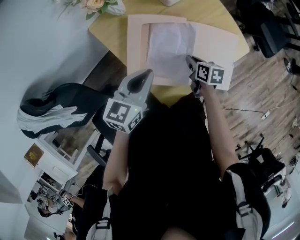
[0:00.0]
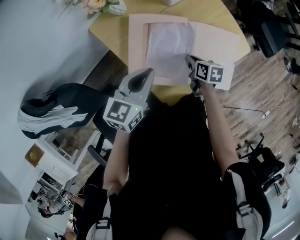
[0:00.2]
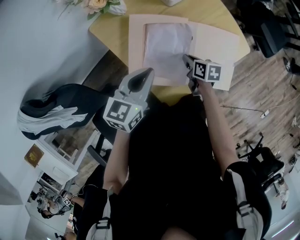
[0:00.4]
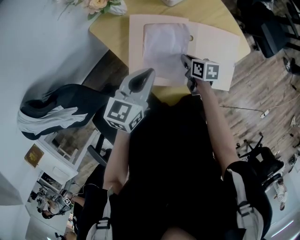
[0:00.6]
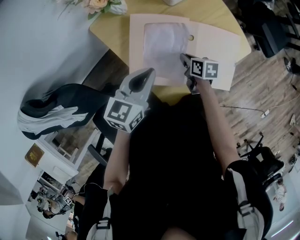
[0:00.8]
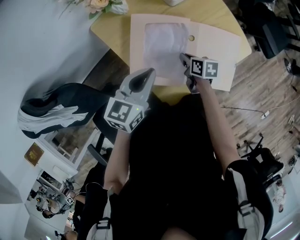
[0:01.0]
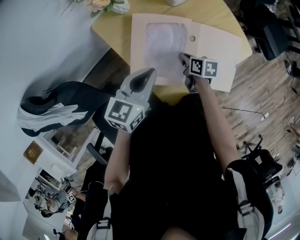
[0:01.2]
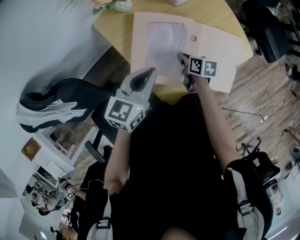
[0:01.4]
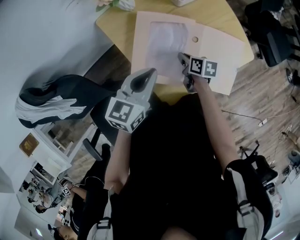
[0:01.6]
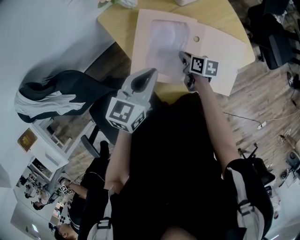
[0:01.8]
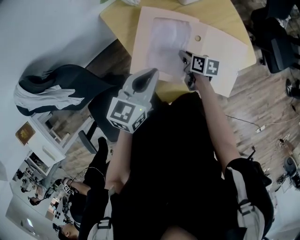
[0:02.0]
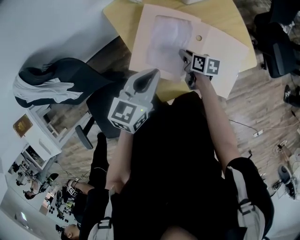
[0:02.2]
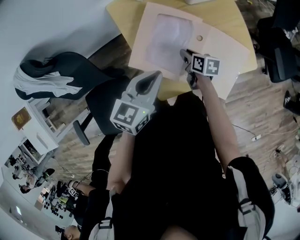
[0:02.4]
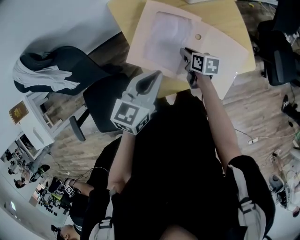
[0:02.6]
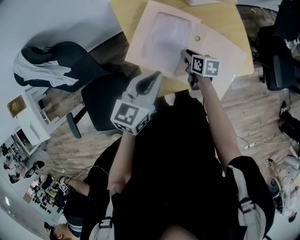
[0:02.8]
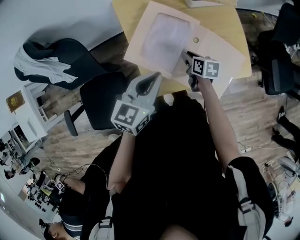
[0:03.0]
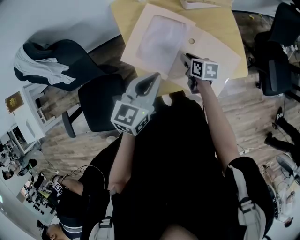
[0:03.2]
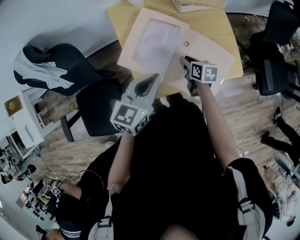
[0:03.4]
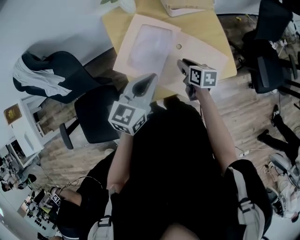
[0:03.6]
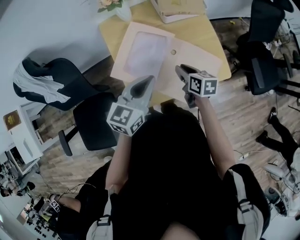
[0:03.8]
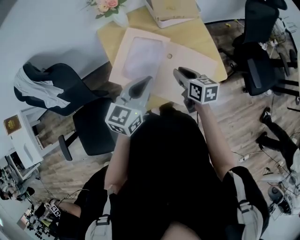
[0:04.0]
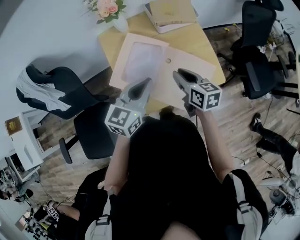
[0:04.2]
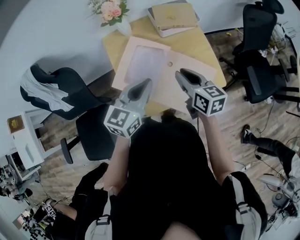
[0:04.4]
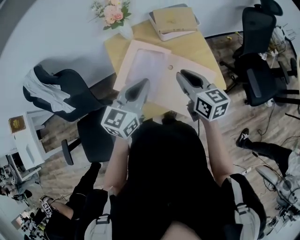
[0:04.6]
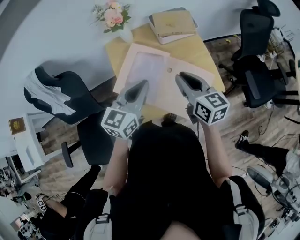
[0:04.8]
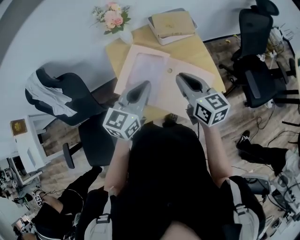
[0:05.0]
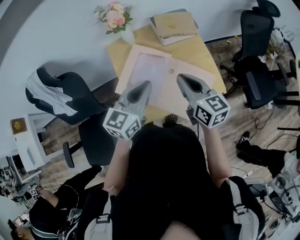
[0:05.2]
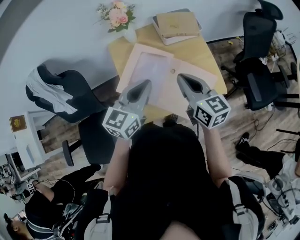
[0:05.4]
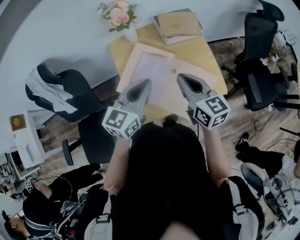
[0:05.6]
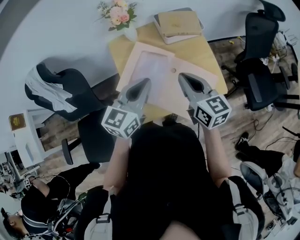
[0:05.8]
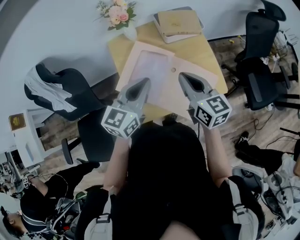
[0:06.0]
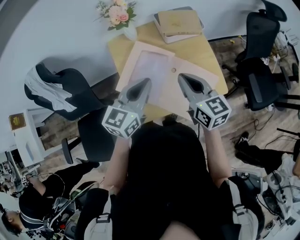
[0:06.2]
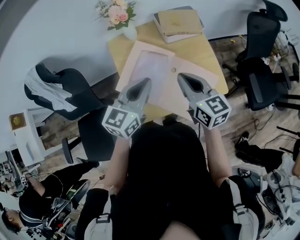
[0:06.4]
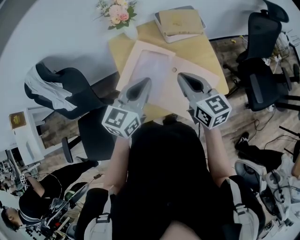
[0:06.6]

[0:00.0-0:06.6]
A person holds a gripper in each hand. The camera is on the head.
0:00.0 to 0:01.6: The right gripper travels to the left by about 5 cm.
0:01.6 to 0:03.2: The right gripper shifts approximately 5 cm to the right, changes its angle by some 20 degrees, and opens up; the left gripper heads backward and to the right, covering about 10 cm.
0:03.2 to 0:05.0: The right gripper moves upward, about 30 cm, and tips its fingers upward by approximately 30 degrees; the left gripper goes roughly 10 cm upward and to the right.
0:05.0 to 0:06.6: The grippers stay close to where they were, moving slightly.

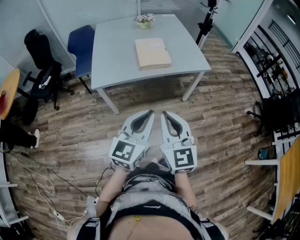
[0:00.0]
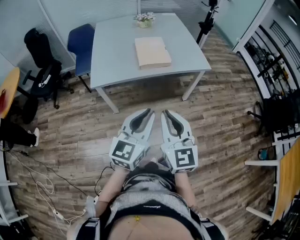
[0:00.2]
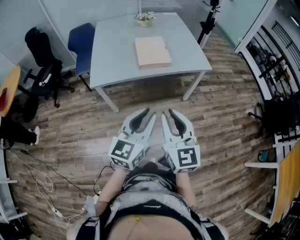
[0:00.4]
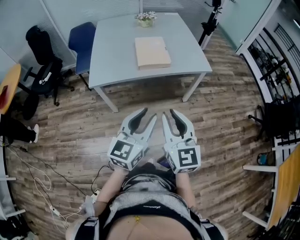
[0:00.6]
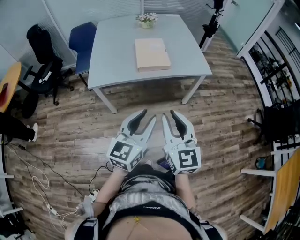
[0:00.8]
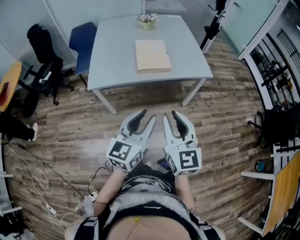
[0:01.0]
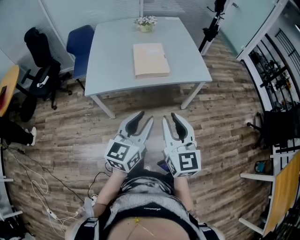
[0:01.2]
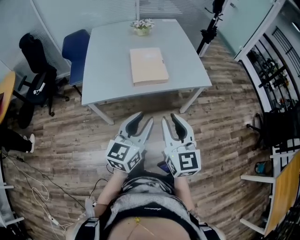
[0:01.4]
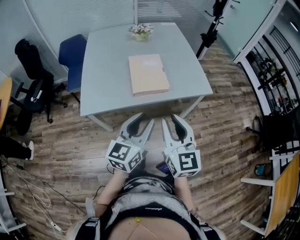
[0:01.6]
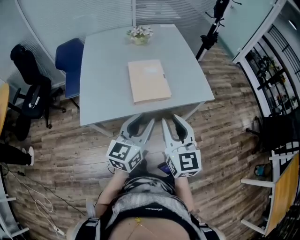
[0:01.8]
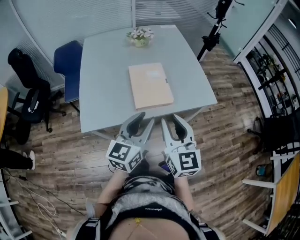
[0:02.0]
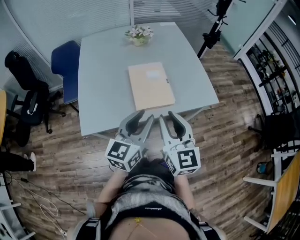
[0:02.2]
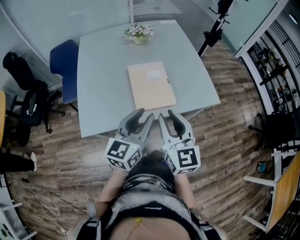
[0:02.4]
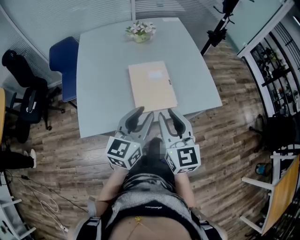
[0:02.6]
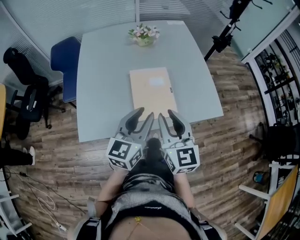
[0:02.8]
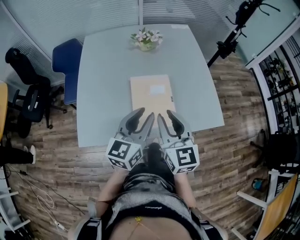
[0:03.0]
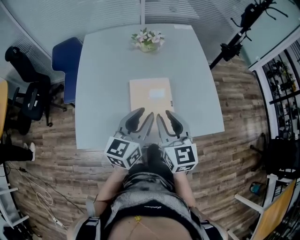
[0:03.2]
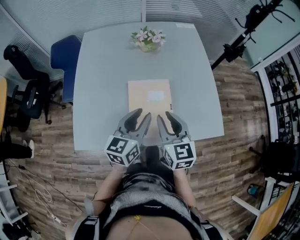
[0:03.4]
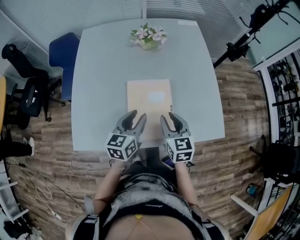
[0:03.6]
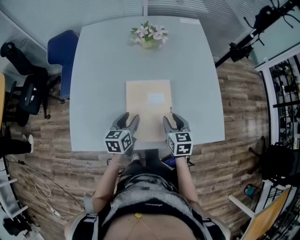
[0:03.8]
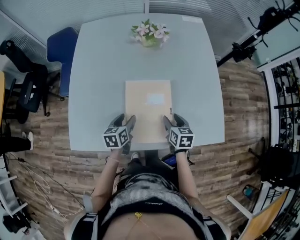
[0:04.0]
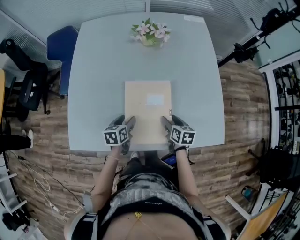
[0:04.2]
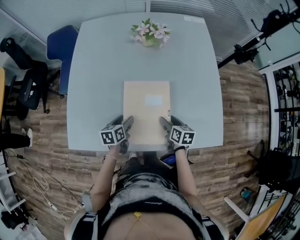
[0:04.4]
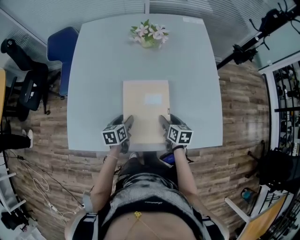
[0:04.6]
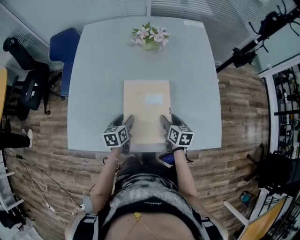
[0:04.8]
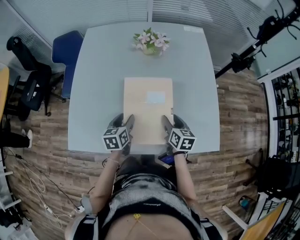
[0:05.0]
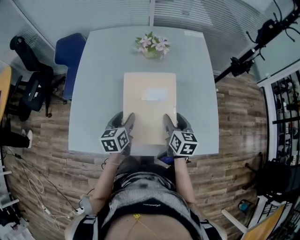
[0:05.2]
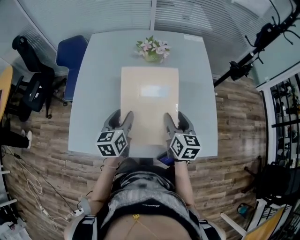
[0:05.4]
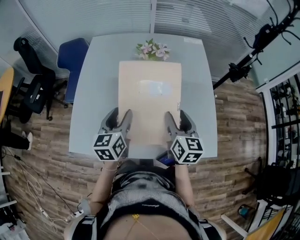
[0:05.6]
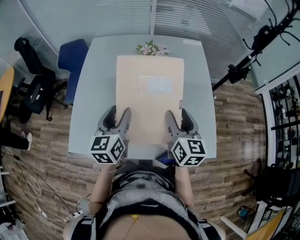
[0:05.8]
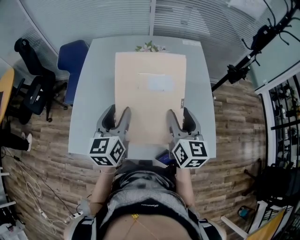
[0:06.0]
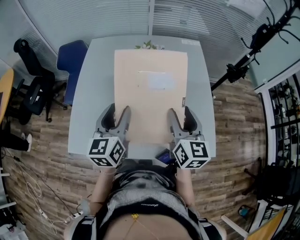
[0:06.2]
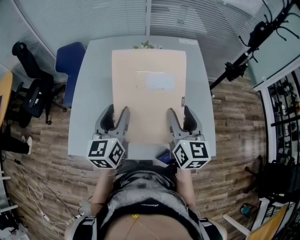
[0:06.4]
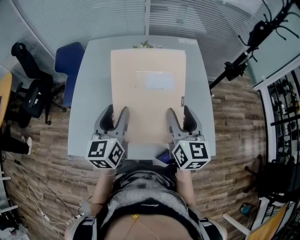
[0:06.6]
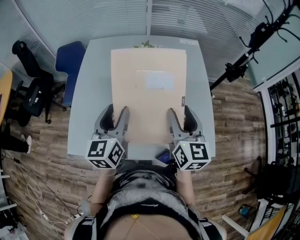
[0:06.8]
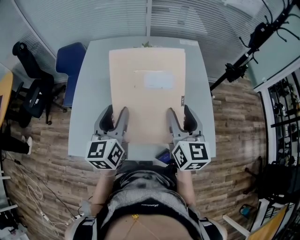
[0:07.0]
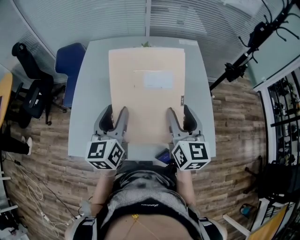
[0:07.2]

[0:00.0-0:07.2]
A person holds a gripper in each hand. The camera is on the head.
0:00.0 to 0:01.4: Both grippers travel together forward, some 15 cm. The right gripper opens. Meanwhile the left gripper opens its fingers.
0:01.4 to 0:02.8: Both grippers move forward, approximately 30 cm.
0:02.8 to 0:04.4: The grippers both shift downward and forward by about 35 cm. The right gripper tips its fingers downward by some 30 degrees, and opens its fingers. The left gripper tips its fingers downward by roughly 40 degrees, and opens.
0:04.4 to 0:05.8: Both grippers move upward, roughly 30 cm. The left gripper swivels roughly 40 degrees. Meanwhile the right gripper turns by roughly 40 degrees.
0:05.8 to 0:07.2: The right gripper goes some 5 cm upward.

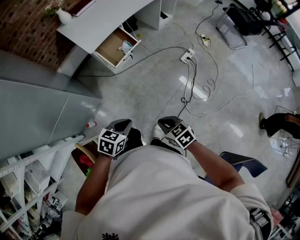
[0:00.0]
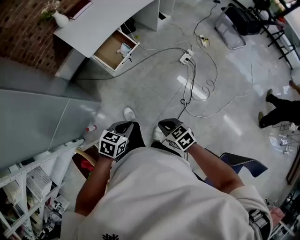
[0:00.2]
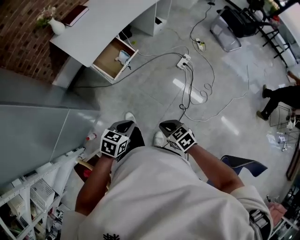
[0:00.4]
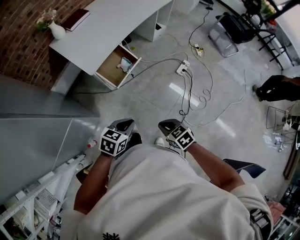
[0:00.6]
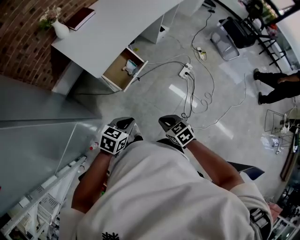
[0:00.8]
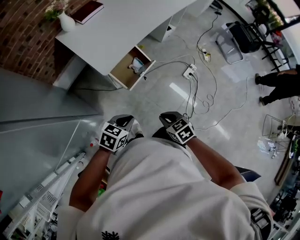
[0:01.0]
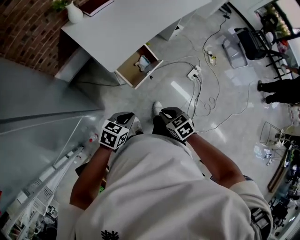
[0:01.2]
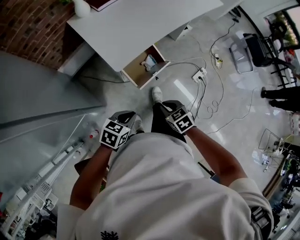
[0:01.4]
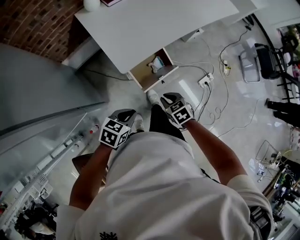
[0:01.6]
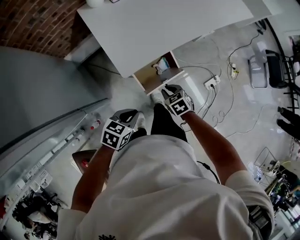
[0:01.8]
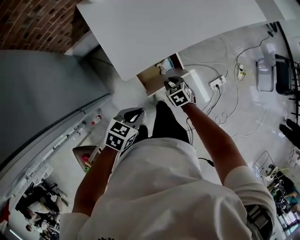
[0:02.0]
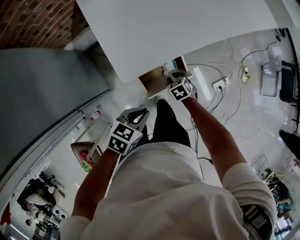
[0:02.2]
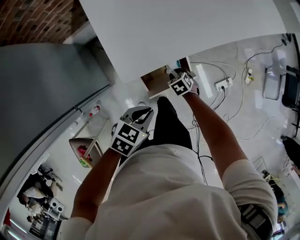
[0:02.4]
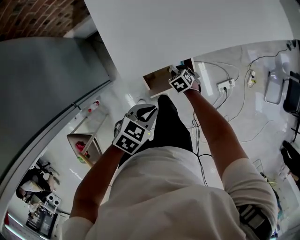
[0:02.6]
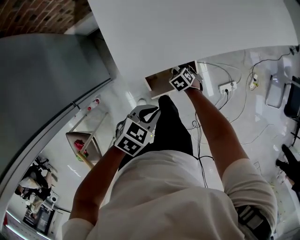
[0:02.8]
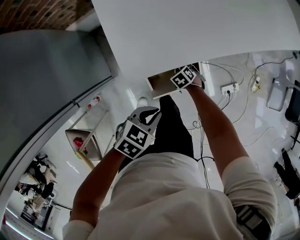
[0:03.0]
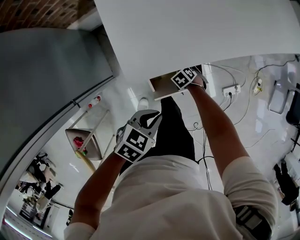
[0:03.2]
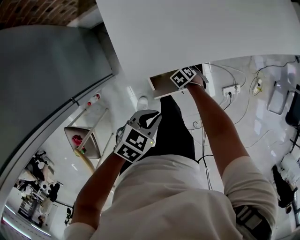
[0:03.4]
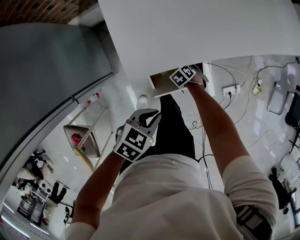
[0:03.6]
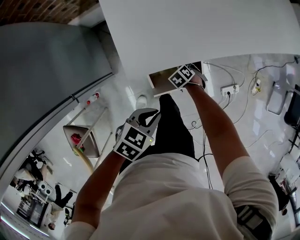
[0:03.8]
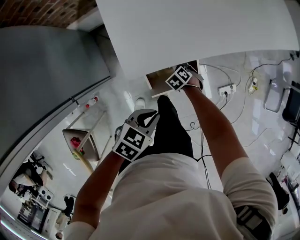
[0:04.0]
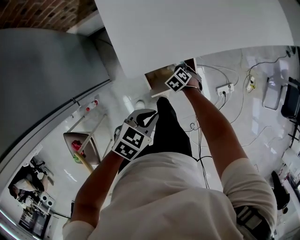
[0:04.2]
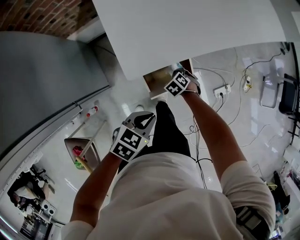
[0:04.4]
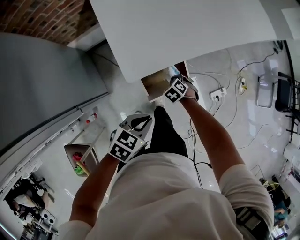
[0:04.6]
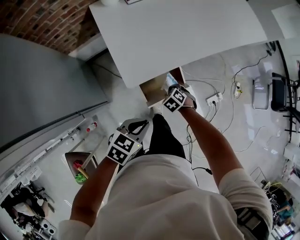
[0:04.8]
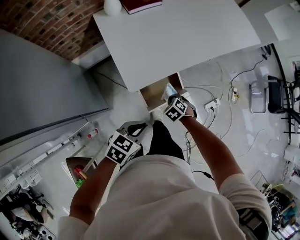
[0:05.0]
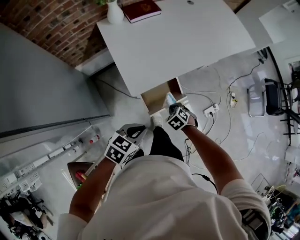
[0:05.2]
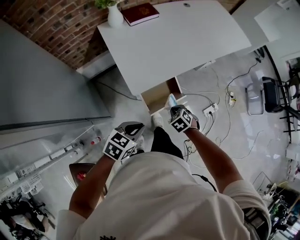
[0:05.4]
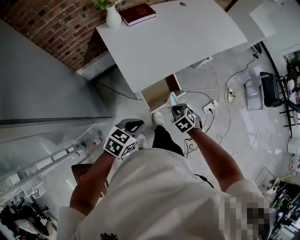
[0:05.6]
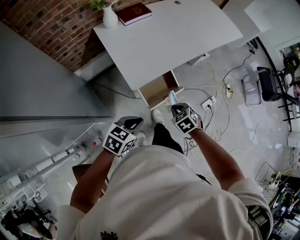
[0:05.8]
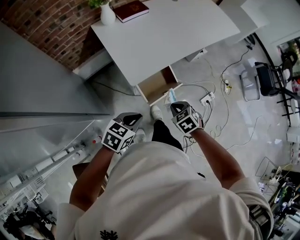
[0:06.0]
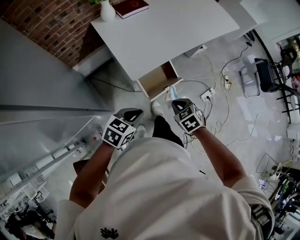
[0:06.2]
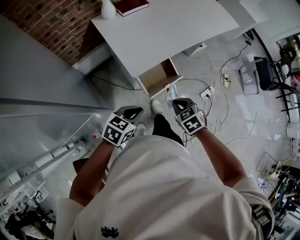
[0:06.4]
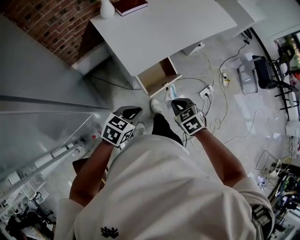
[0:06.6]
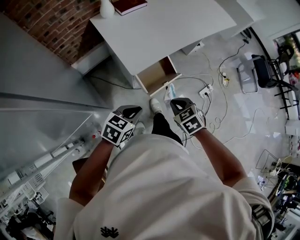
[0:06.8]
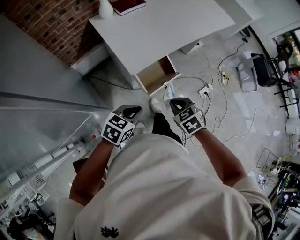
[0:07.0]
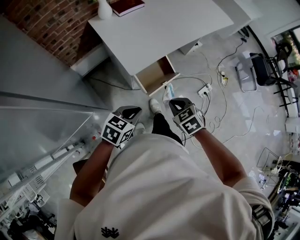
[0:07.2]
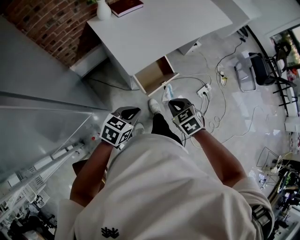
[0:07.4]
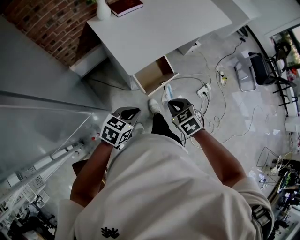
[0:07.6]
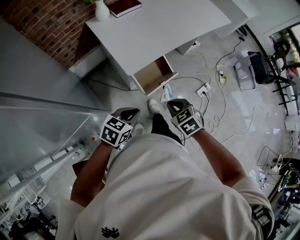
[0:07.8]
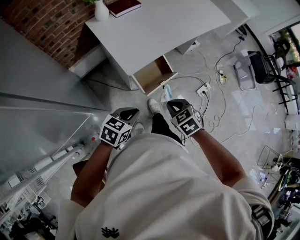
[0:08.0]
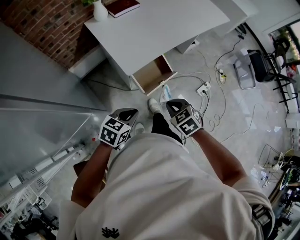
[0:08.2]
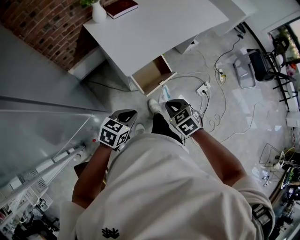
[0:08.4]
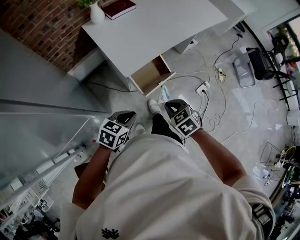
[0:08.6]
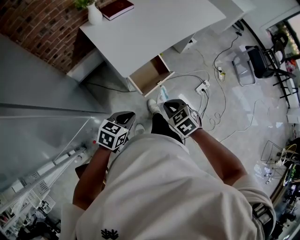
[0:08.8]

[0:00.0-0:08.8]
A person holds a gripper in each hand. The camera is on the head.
0:00.0 to 0:01.4: The two grippers travel together, forward and to the left, about 40 cm.
0:01.4 to 0:03.0: The right gripper moves some 50 cm, and swivels approximately 30 degrees; the left gripper changes place by some 30 cm.
0:03.0 to 0:04.4: The right gripper moves upward, roughly 10 cm, and closes its fingers. The left gripper travels upward by about 5 cm.
0:04.4 to 0:05.8: The right gripper travels upward by about 30 cm, and turns by about 20 degrees, while the left gripper moves upward, some 15 cm.
0:05.8 to 0:07.4: The right gripper moves backward and upward, roughly 15 cm. The left gripper heads backward, covering approximately 5 cm.
0:07.4 to 0:08.8: The grippers make only small movements.

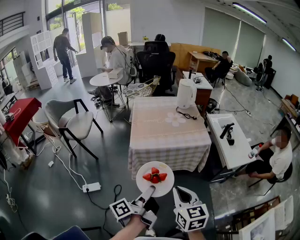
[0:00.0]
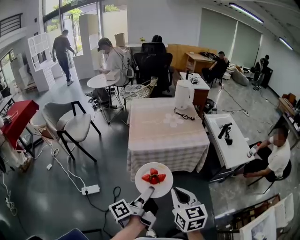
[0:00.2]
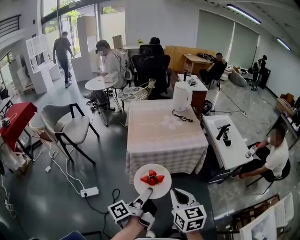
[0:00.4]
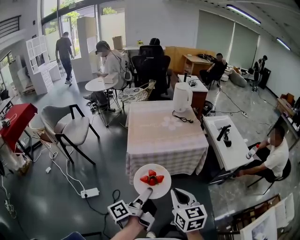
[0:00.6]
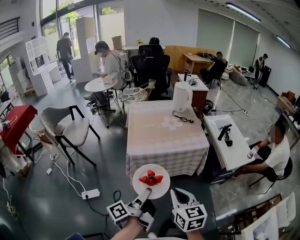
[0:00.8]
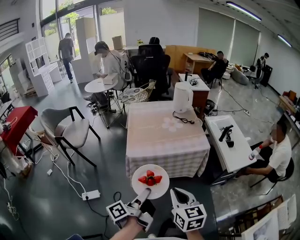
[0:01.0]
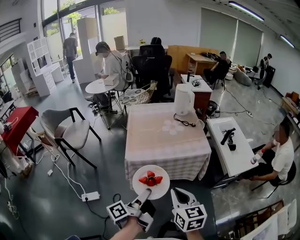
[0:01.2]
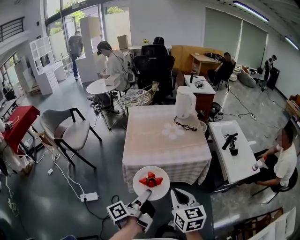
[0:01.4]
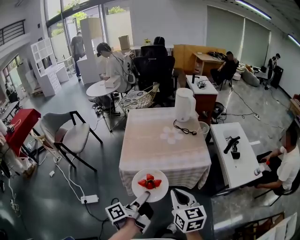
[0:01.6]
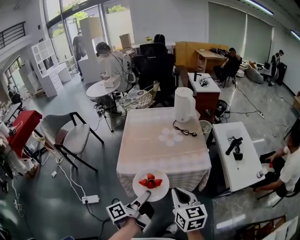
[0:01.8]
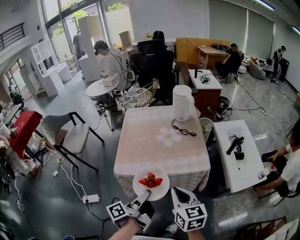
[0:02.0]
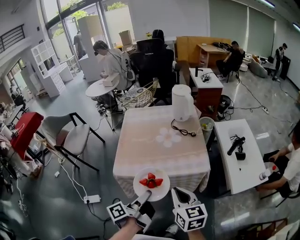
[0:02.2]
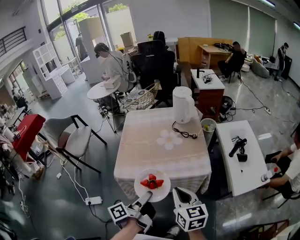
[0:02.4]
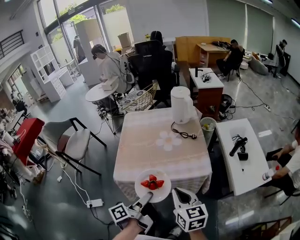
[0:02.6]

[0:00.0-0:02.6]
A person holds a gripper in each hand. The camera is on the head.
0:00.0 to 0:01.2: The right gripper moves some 10 cm.
0:01.2 to 0:02.6: The right gripper moves roughly 25 cm.
